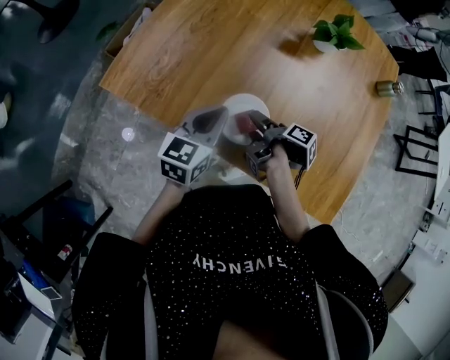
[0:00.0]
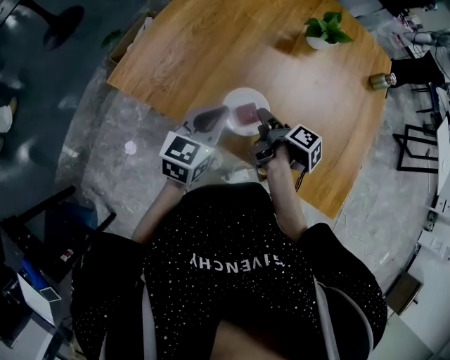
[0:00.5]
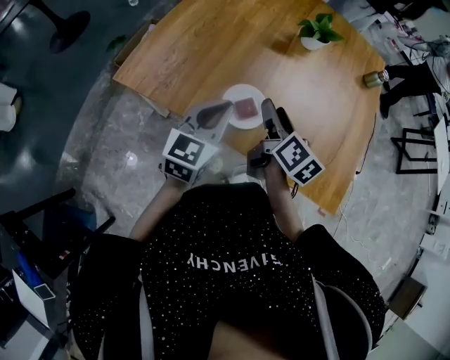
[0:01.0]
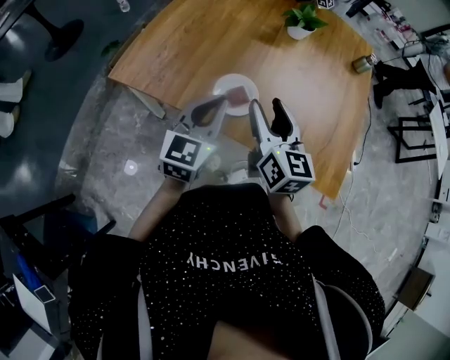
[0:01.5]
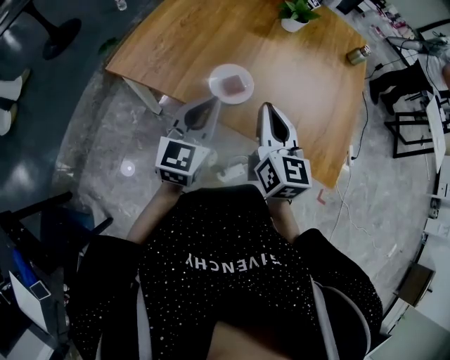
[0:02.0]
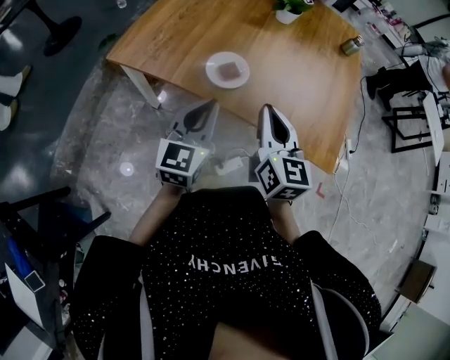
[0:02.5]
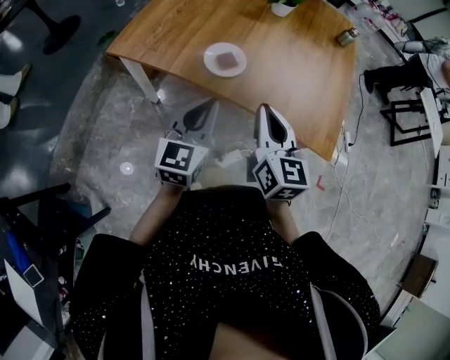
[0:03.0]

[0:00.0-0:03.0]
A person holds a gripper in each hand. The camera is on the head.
0:00.0 to 0:01.5: The left gripper changes place by roughly 15 cm, and changes its angle by roughly 20 degrees.
0:01.5 to 0:03.0: The left gripper moves roughly 15 cm.

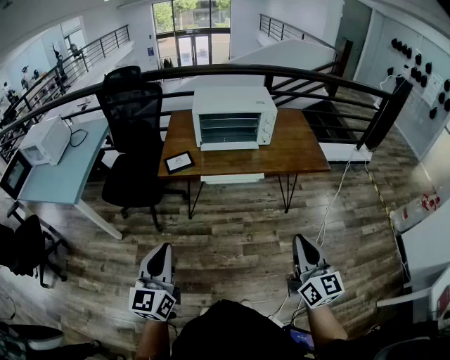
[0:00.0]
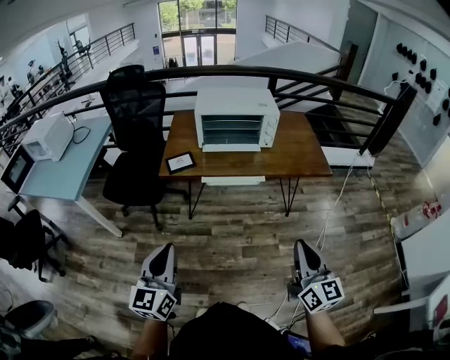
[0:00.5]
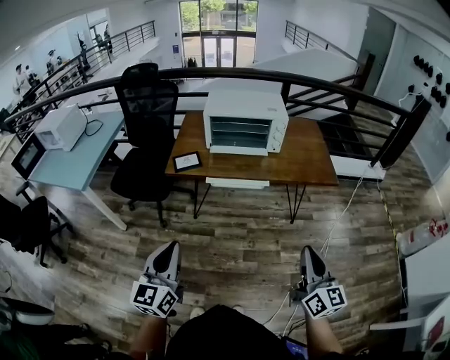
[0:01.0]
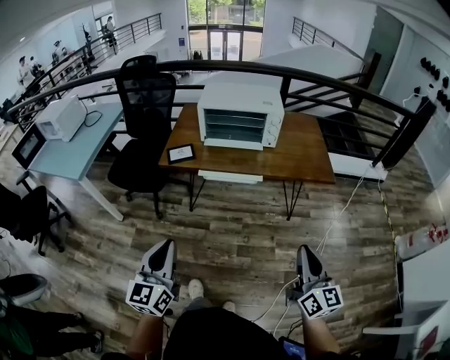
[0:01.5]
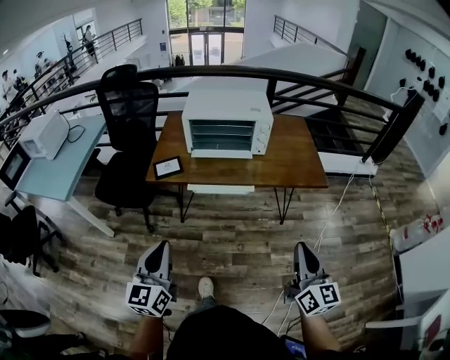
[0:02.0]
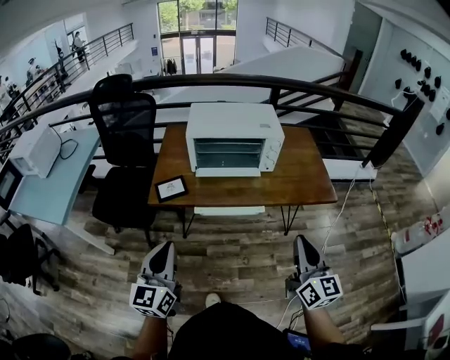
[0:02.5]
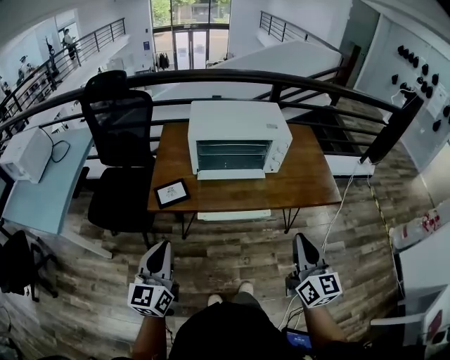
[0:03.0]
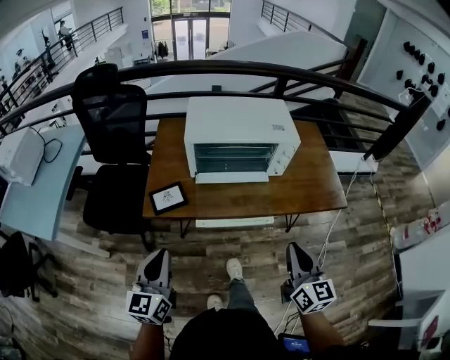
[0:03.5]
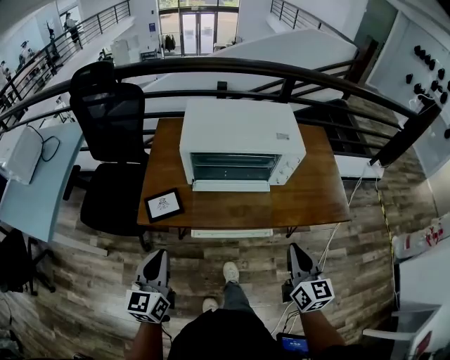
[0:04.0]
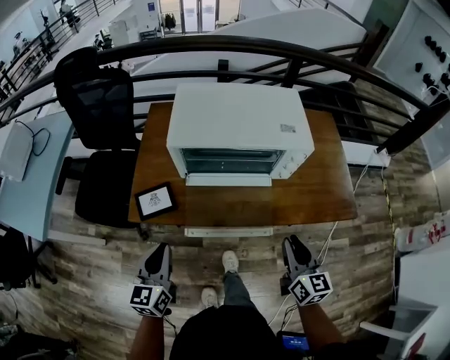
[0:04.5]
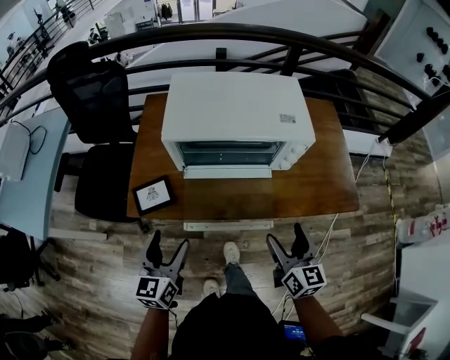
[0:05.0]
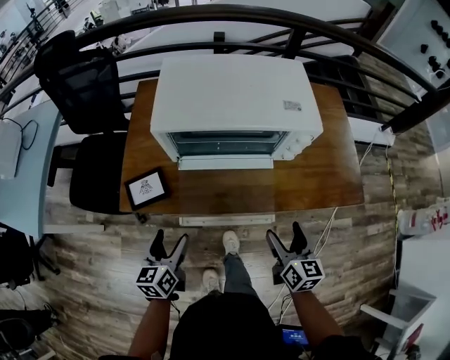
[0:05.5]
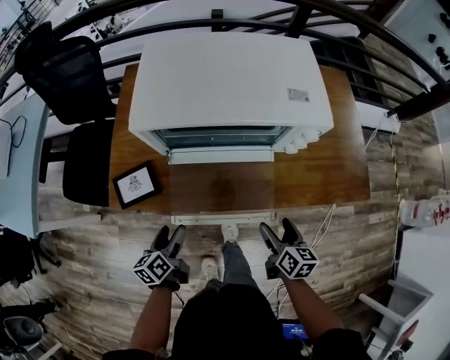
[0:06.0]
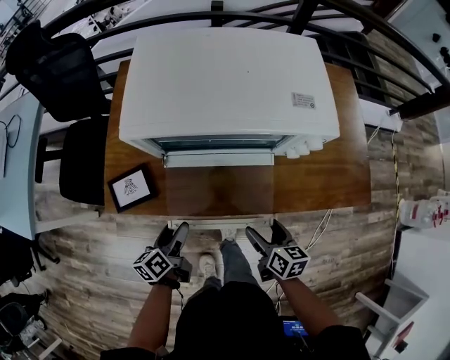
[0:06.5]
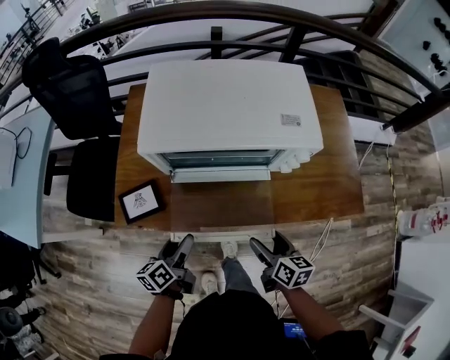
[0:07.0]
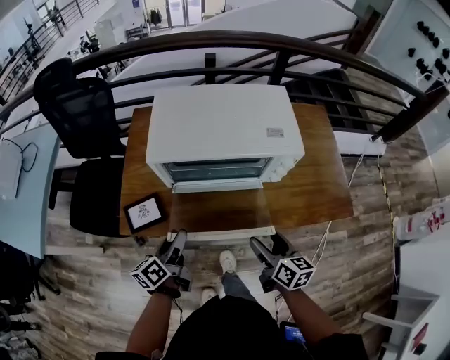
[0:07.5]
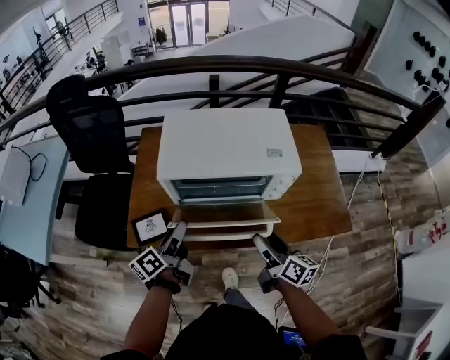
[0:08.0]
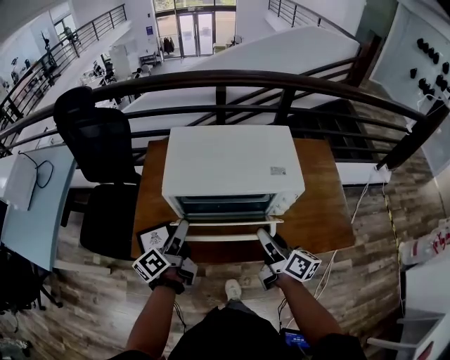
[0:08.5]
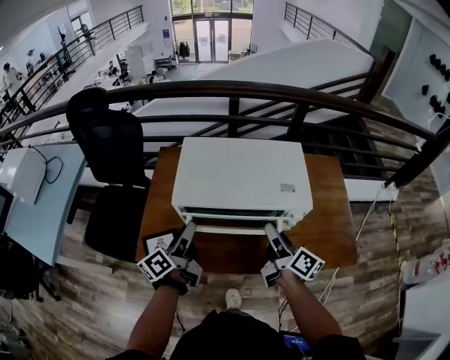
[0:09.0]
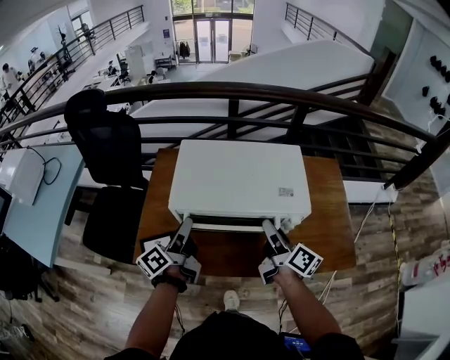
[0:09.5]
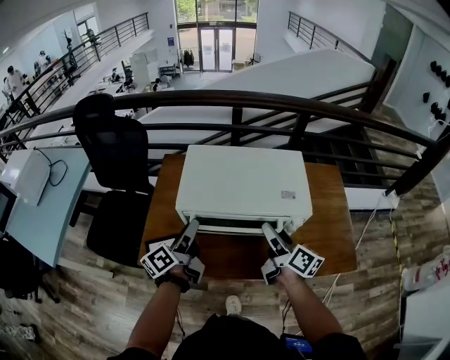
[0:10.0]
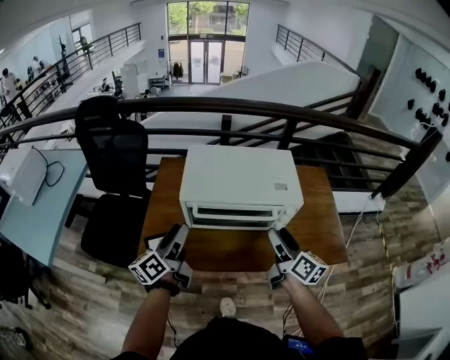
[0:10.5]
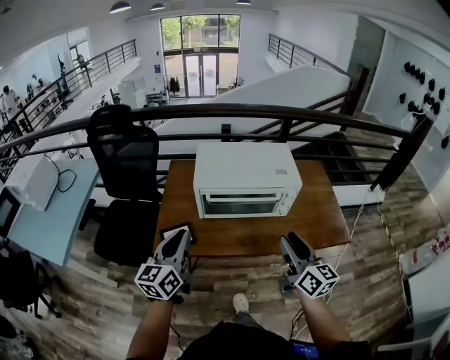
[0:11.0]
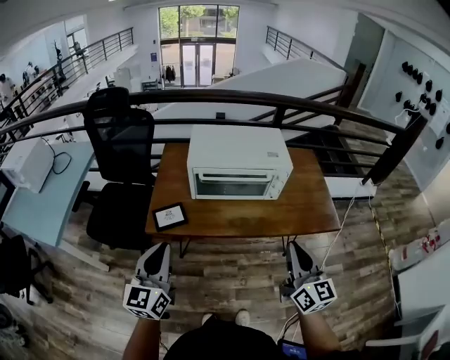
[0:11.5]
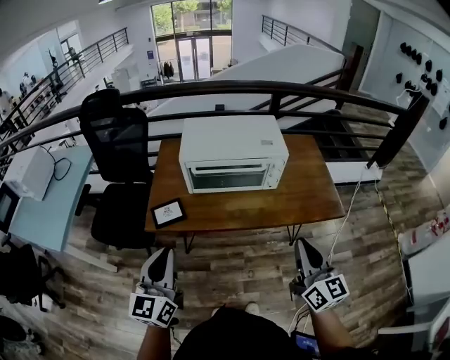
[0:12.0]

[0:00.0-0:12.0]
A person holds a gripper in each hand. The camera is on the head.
0:00.0 to 0:02.0: Both grippers travel together to the right and forward, some 10 cm.
0:02.0 to 0:04.0: Both grippers travel together forward, about 25 cm.
0:04.0 to 0:06.0: The grippers both shift downward by some 20 cm. The right gripper turns by some 30 degrees, and opens its fingers; the left gripper turns by about 40 degrees, and opens up.
0:06.0 to 0:08.0: The grippers both shift upward and forward by roughly 20 cm. The right gripper rotates about 30 degrees. The left gripper rotates roughly 30 degrees.
0:08.0 to 0:10.0: The left gripper travels forward by about 10 cm, while the right gripper moves forward and upward, roughly 15 cm.
0:10.0 to 0:12.0: Both grippers travel together backward, approximately 30 cm. The right gripper turns by some 40 degrees, and closes up, while the left gripper twists about 50 degrees clockwise, seen from behind, and closes up.

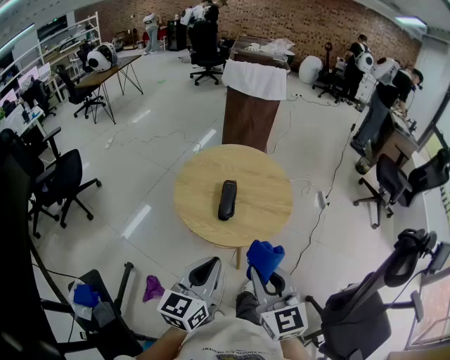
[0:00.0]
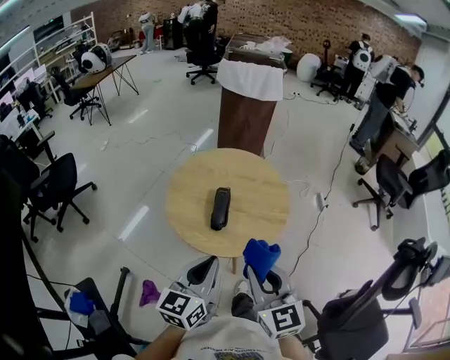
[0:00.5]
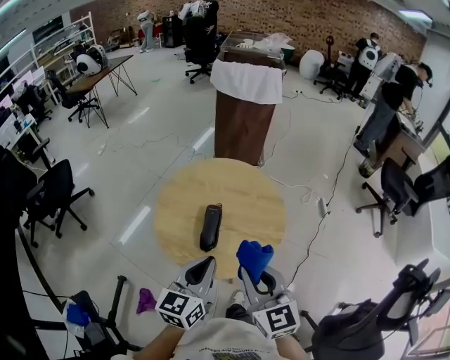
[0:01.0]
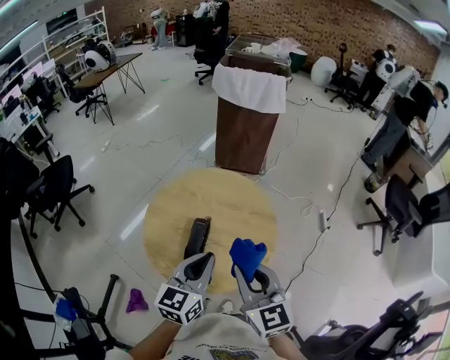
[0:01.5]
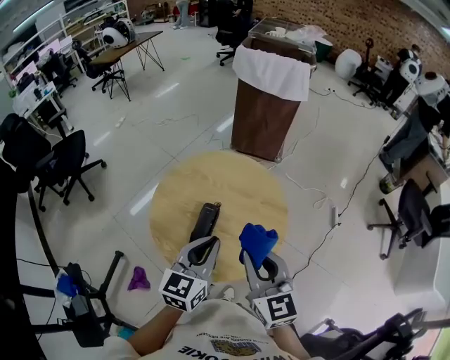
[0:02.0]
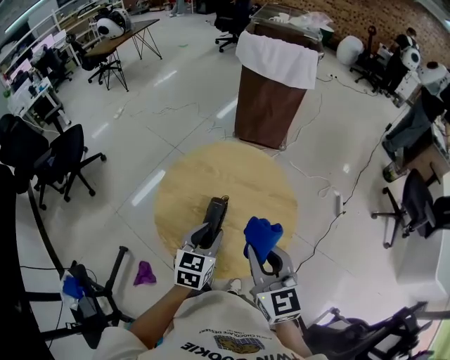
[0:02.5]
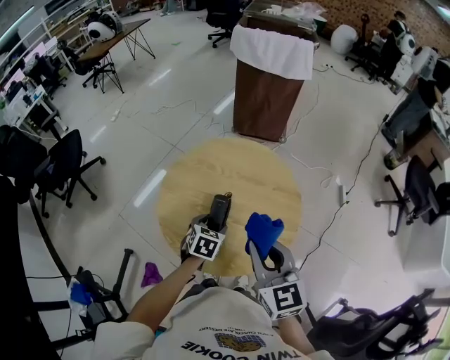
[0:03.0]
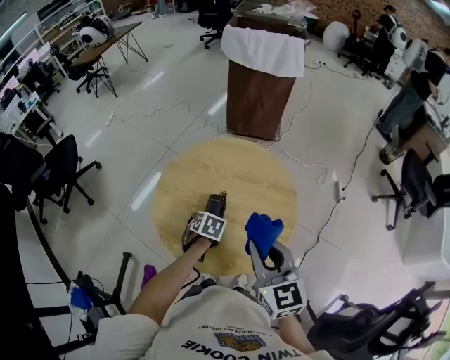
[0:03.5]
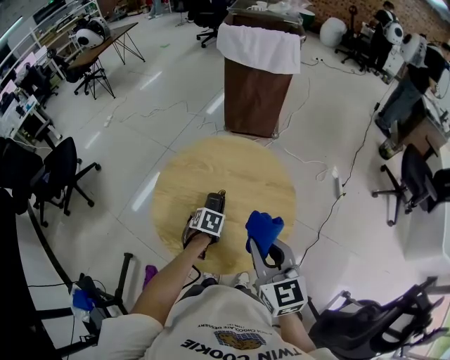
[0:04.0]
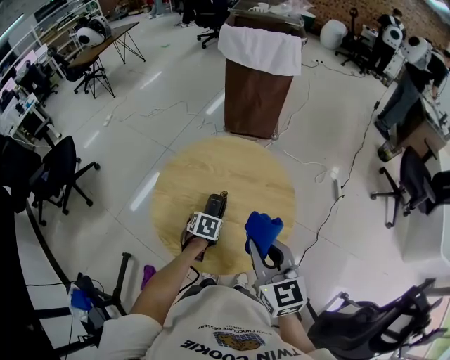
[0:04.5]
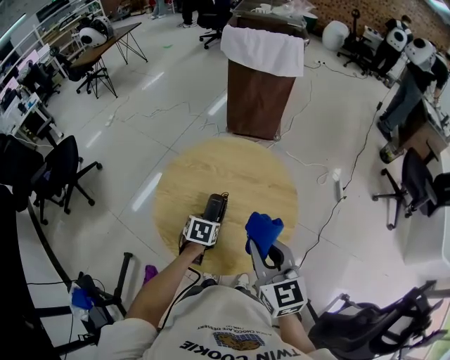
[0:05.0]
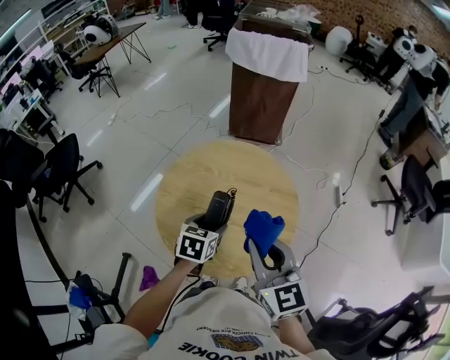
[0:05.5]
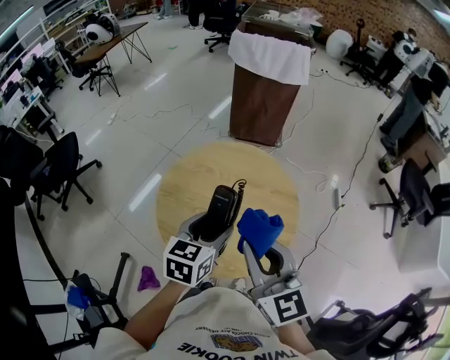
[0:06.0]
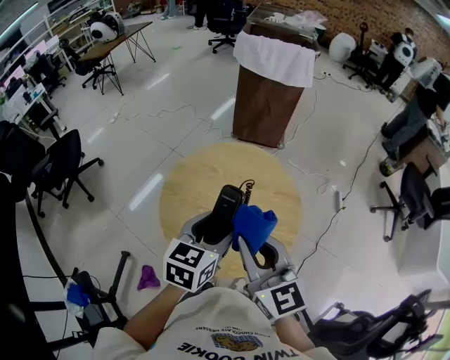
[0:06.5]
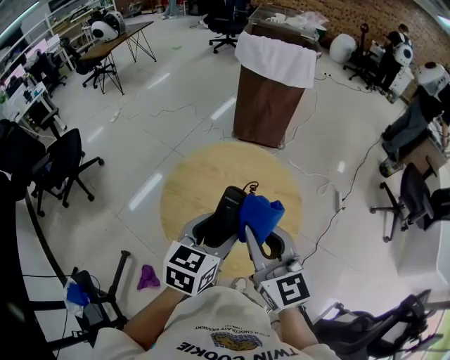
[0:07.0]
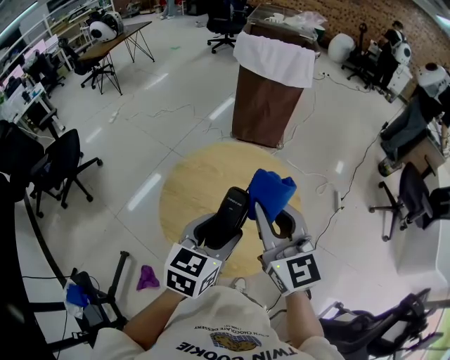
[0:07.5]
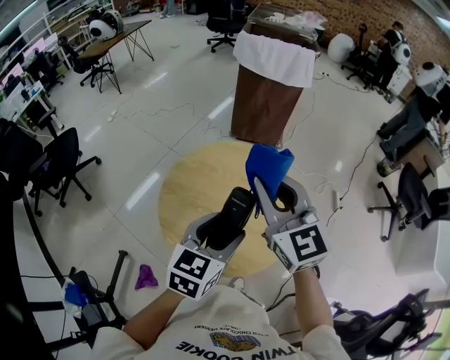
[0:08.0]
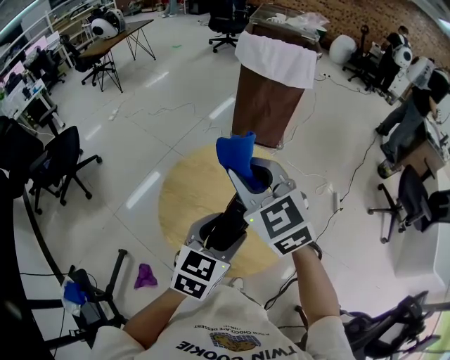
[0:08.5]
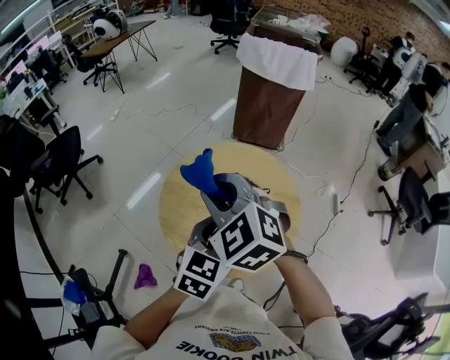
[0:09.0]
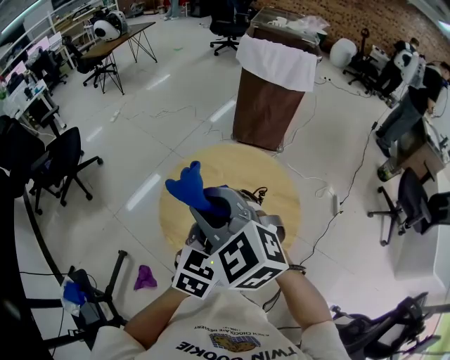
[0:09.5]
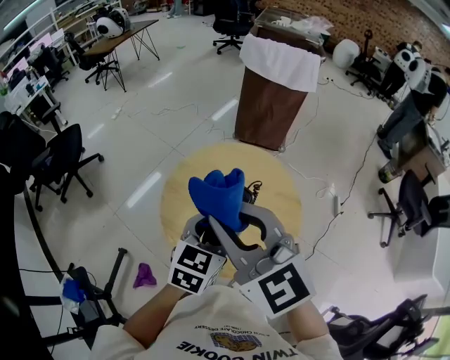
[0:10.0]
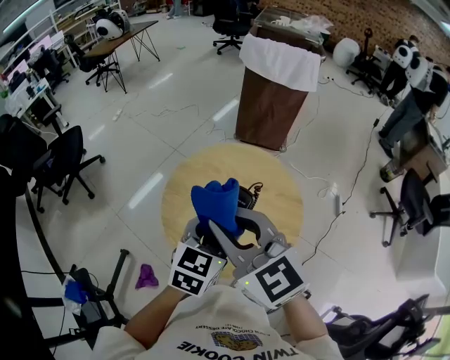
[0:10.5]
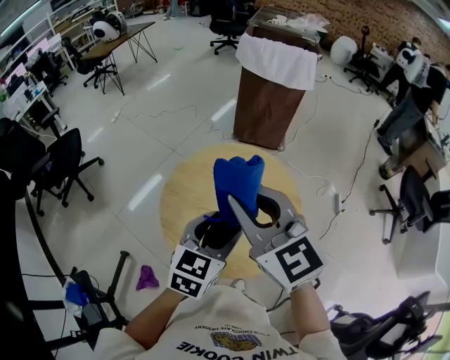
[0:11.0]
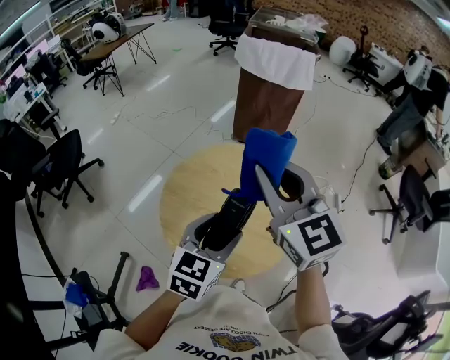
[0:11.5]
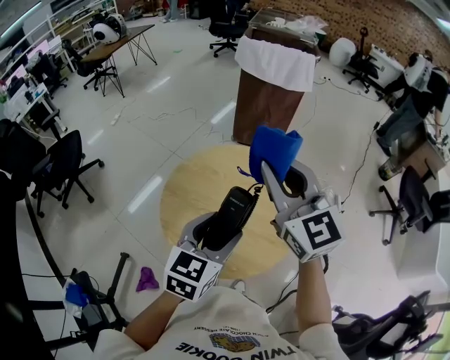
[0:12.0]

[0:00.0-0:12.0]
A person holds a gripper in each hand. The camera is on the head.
0:00.0 to 0:02.0: The two grippers go roughly 25 cm forward and to the right.
0:02.0 to 0:04.0: The left gripper moves downward, some 25 cm, angles its fingers downward, by approximately 60 degrees, and opens its fingers.
0:04.0 to 0:06.0: The right gripper moves upward, some 10 cm. Meanwhile the left gripper goes about 25 cm upward, and points its fingers some 40 degrees further upward.
0:06.0 to 0:08.0: The right gripper heads forward and upward, covering roughly 10 cm. Meanwhile the left gripper changes place by some 5 cm.
0:08.0 to 0:10.0: The right gripper is displaced to the left and backward by about 15 cm.
0:10.0 to 0:12.0: The right gripper heads to the right and forward, covering approximately 15 cm.
